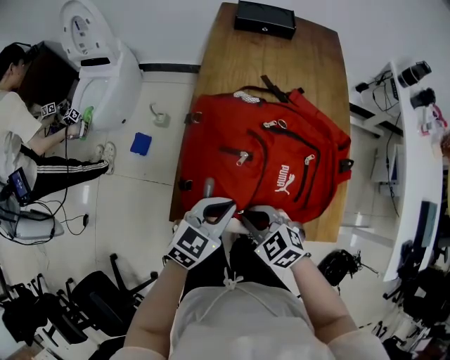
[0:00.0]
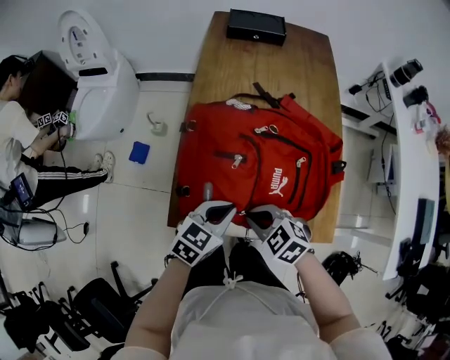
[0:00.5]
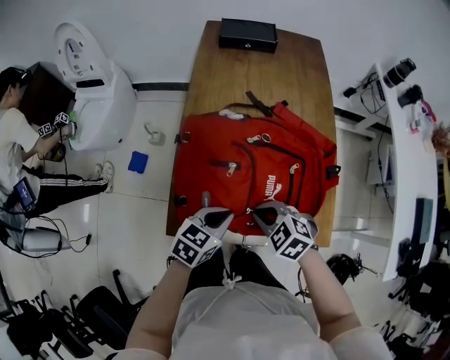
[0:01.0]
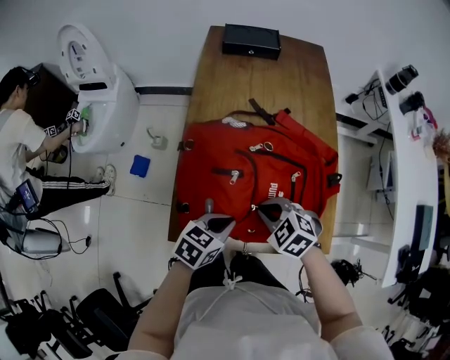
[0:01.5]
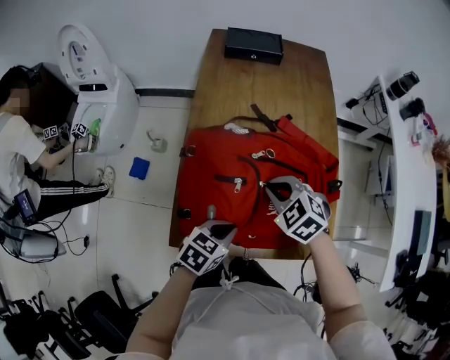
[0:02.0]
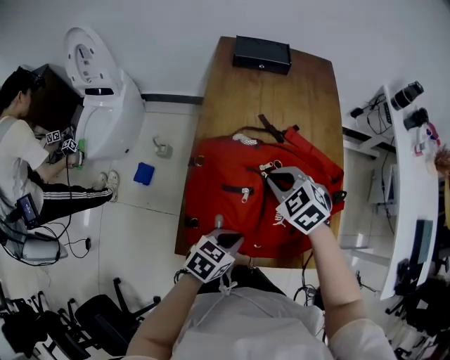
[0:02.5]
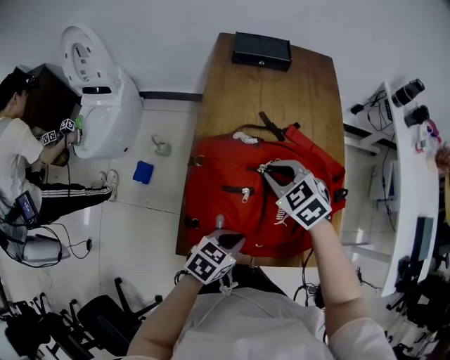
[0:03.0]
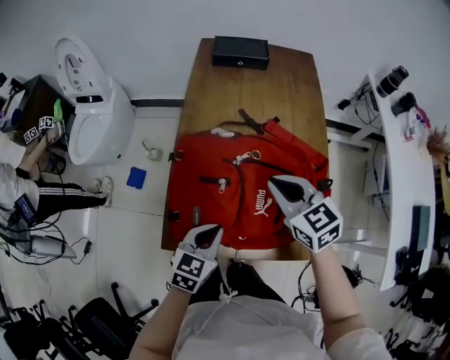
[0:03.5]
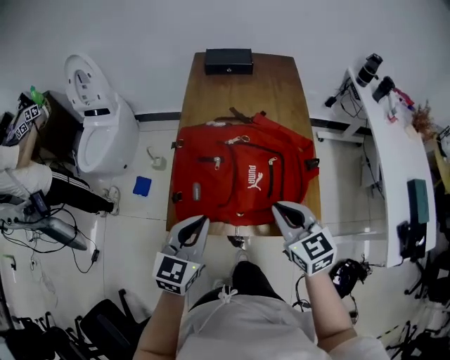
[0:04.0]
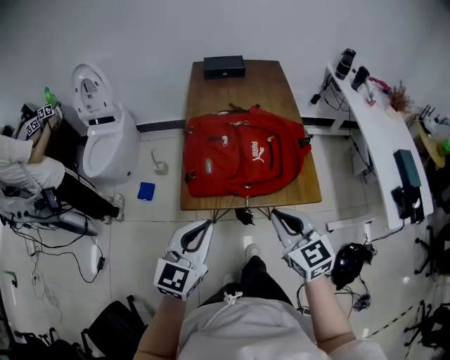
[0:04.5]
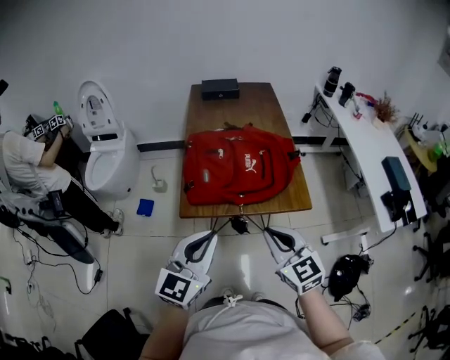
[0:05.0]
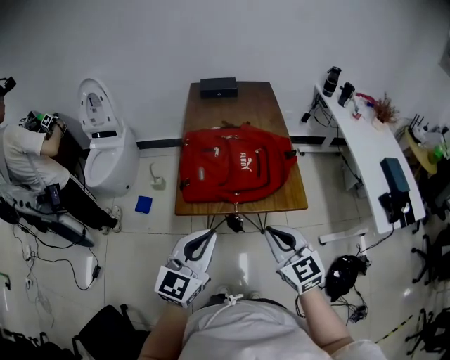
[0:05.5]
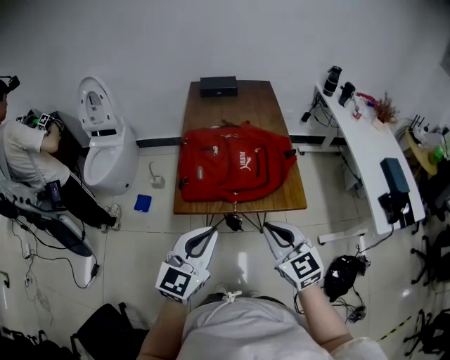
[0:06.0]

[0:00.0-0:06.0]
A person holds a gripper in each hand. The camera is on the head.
0:00.0 to 0:02.0: The left gripper changes its angle by roughly 20 degrees. The right gripper travels forward and to the right by approximately 15 cm.
0:02.0 to 0:04.0: The right gripper is displaced backward, upward and to the right by some 20 cm, and rotates some 40 degrees; the left gripper moves upward, some 15 cm, and changes its angle by approximately 40 degrees.
0:04.0 to 0:06.0: The right gripper shifts approximately 20 cm backward; the left gripper goes approximately 20 cm backward and upward.

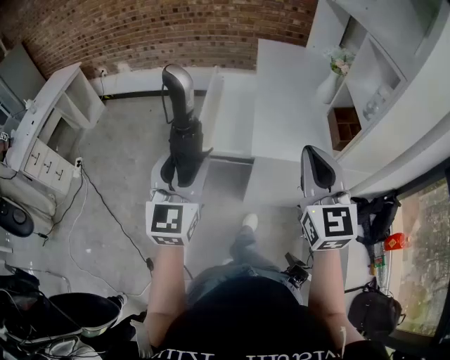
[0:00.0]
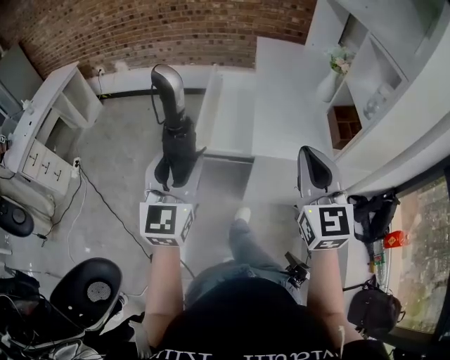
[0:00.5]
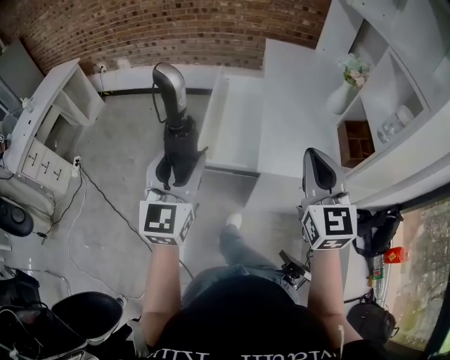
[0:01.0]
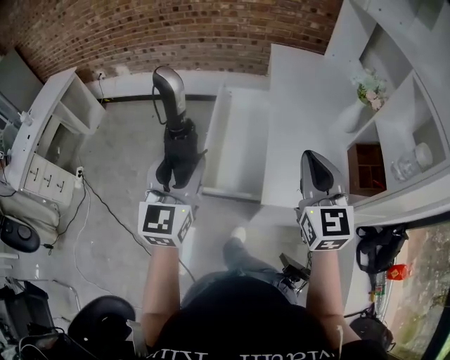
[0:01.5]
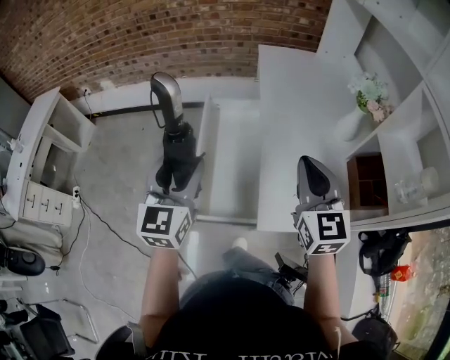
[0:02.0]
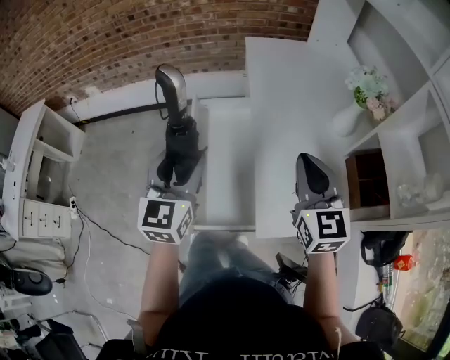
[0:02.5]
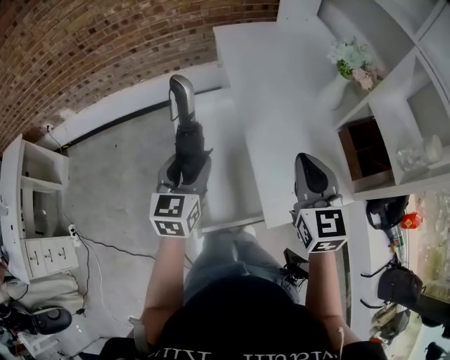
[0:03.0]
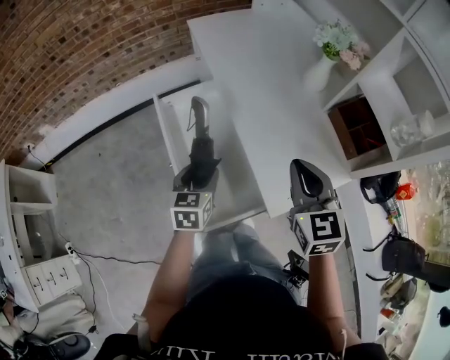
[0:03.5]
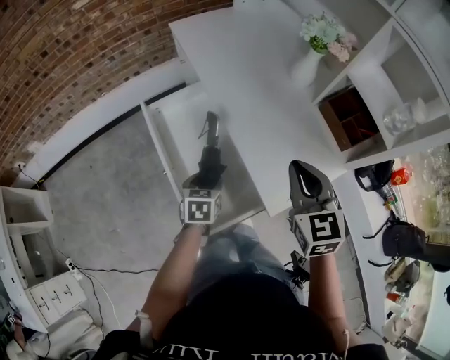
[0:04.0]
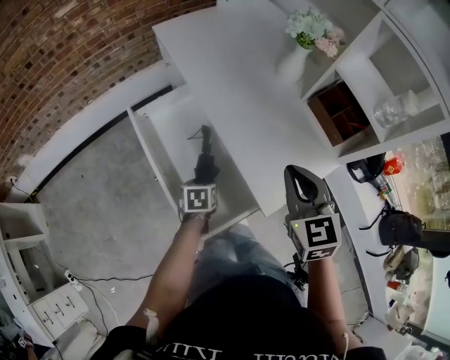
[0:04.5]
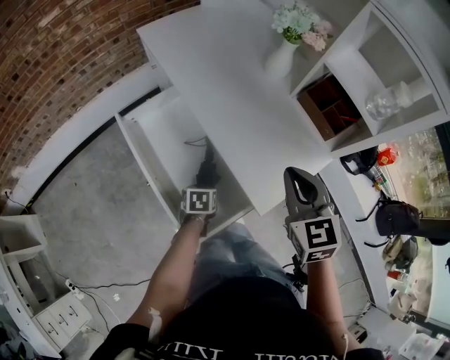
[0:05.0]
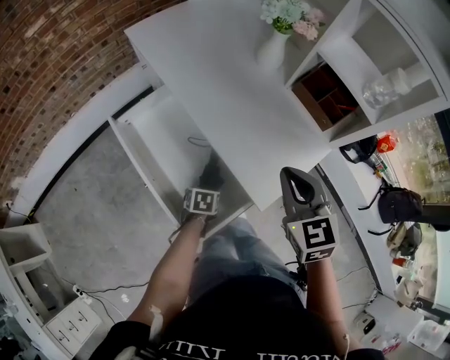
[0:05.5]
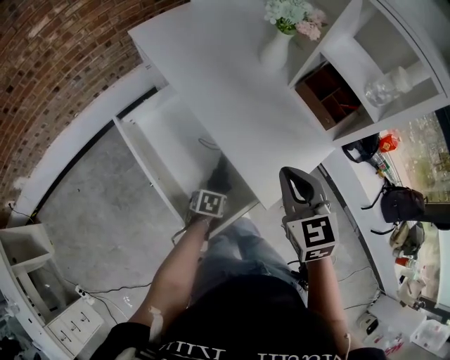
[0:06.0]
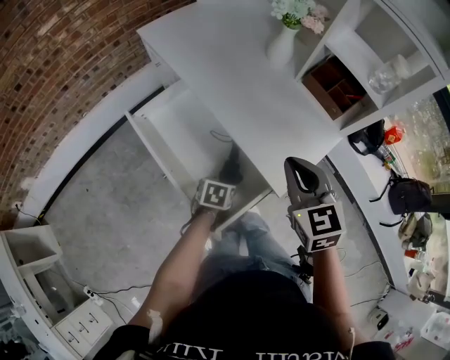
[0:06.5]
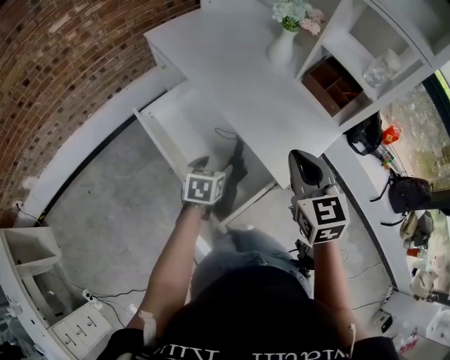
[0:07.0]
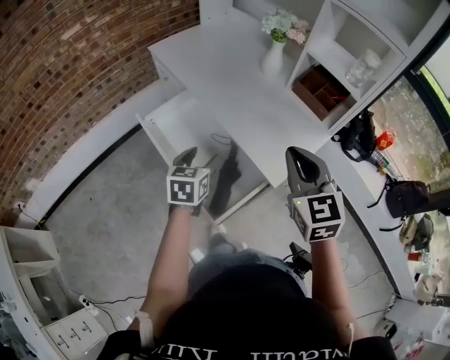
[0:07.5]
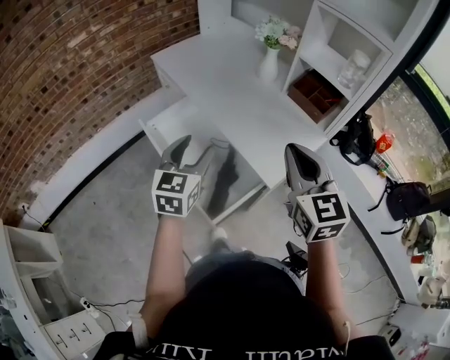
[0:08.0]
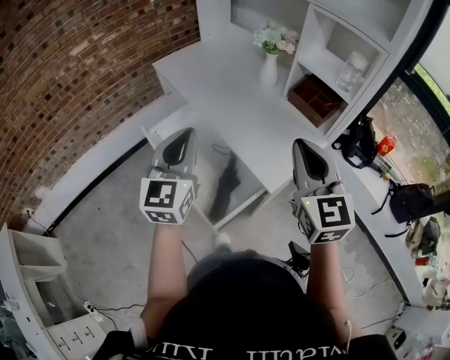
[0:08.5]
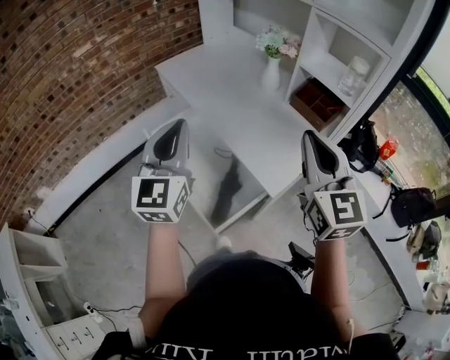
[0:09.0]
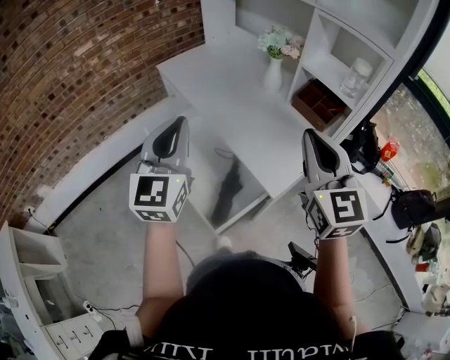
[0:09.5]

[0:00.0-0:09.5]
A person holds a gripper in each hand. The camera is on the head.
0:00.0 to 0:02.0: The two grippers go approximately 30 cm forward.
0:02.0 to 0:04.0: The left gripper moves downward, approximately 30 cm, and points its fingers some 40 degrees further downward, while the right gripper heads downward, covering approximately 5 cm, and changes its angle by roughly 30 degrees.
0:04.0 to 0:05.5: The left gripper heads downward and to the right, covering roughly 15 cm, and turns by some 20 degrees.
0:05.5 to 0:07.5: The left gripper travels upward by some 25 cm, and points its fingers roughly 30 degrees further upward, while the right gripper shifts approximately 10 cm backward and upward.
0:07.5 to 0:09.5: The right gripper goes approximately 10 cm upward; the left gripper goes roughly 25 cm upward, tips its fingers upward by about 30 degrees, and closes its fingers.

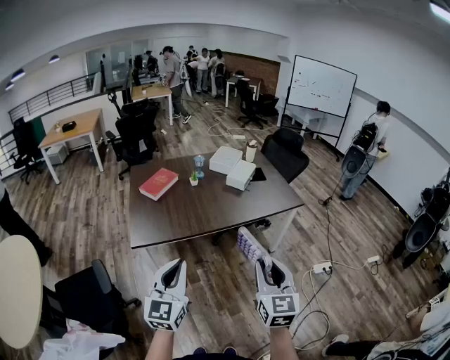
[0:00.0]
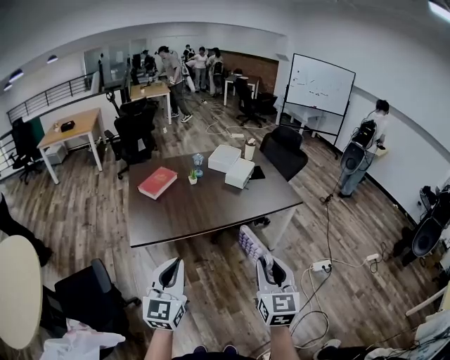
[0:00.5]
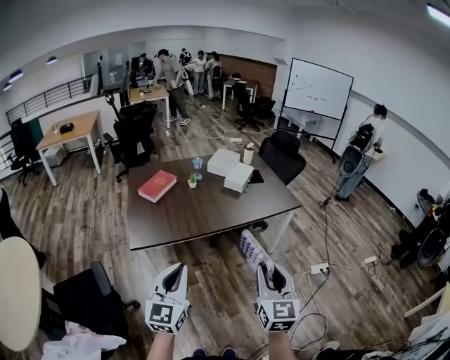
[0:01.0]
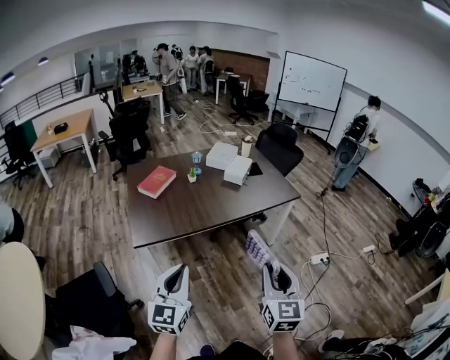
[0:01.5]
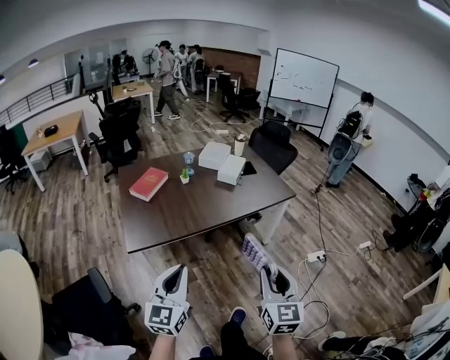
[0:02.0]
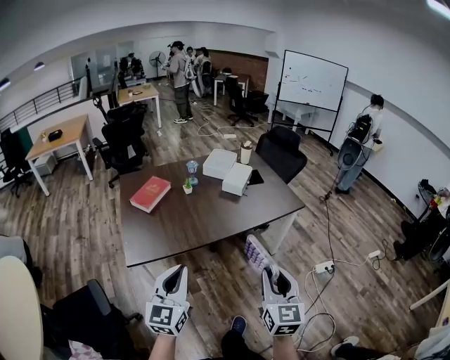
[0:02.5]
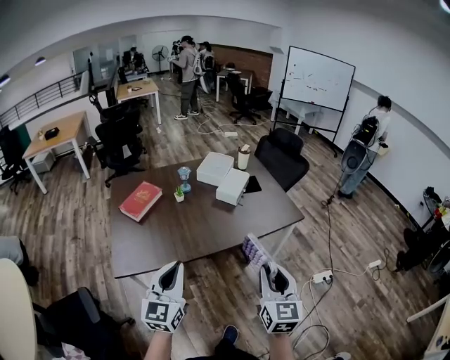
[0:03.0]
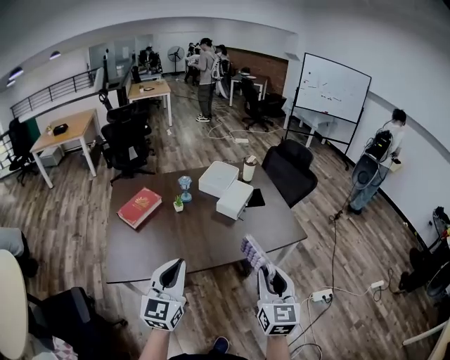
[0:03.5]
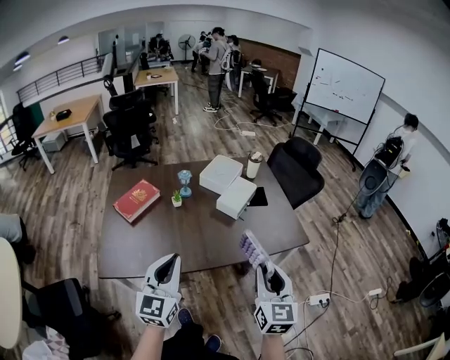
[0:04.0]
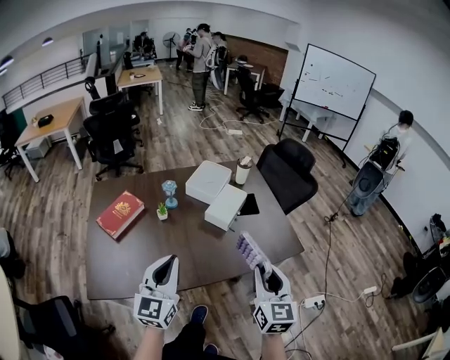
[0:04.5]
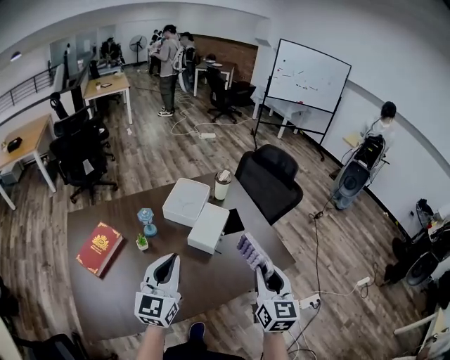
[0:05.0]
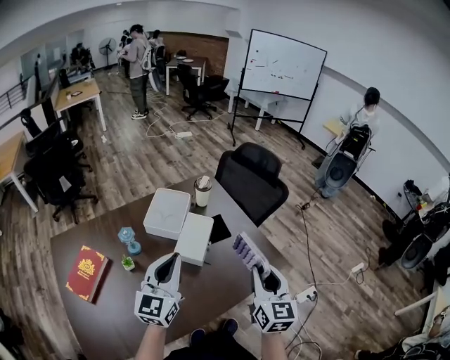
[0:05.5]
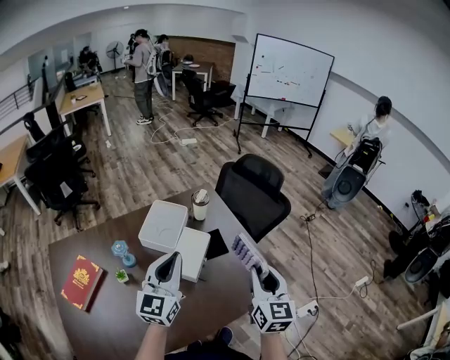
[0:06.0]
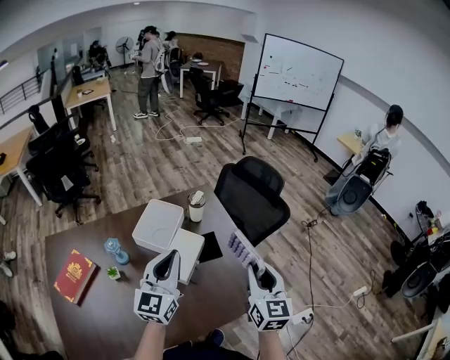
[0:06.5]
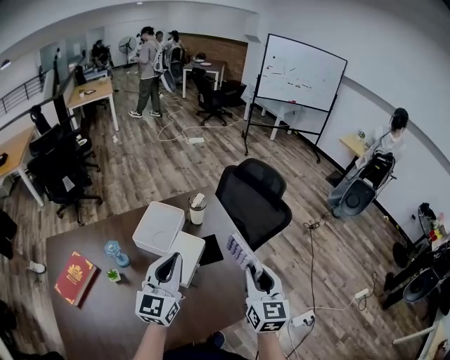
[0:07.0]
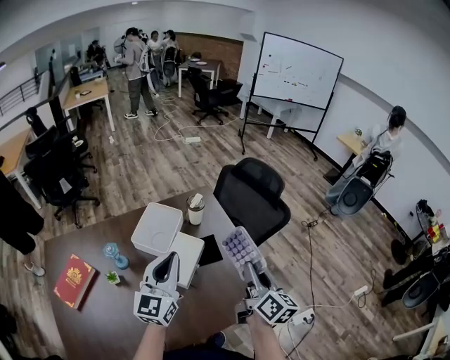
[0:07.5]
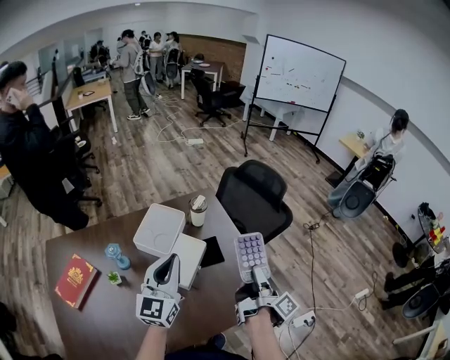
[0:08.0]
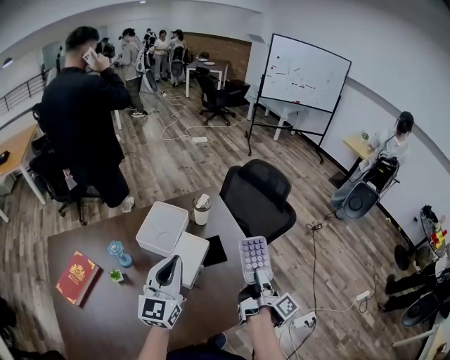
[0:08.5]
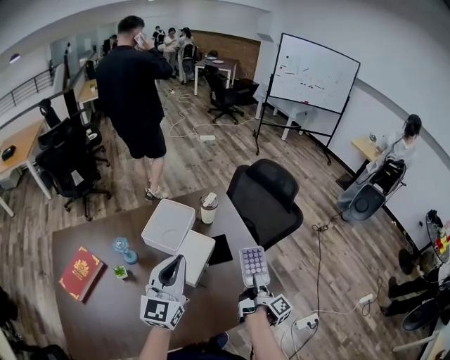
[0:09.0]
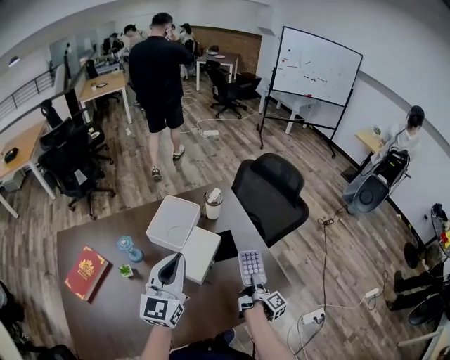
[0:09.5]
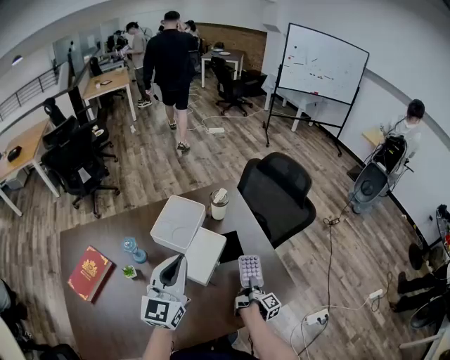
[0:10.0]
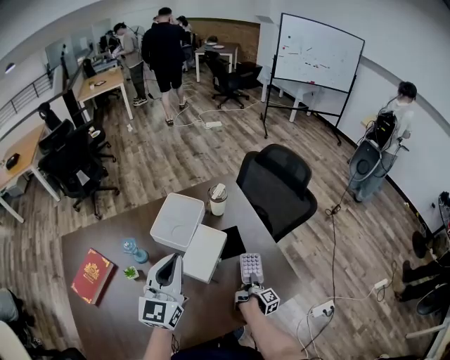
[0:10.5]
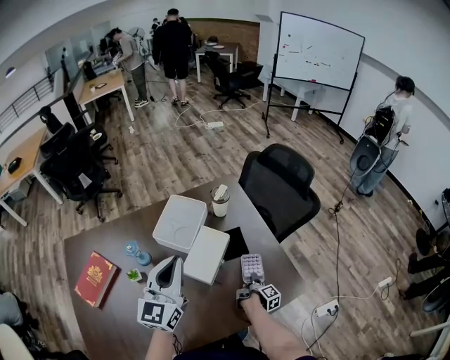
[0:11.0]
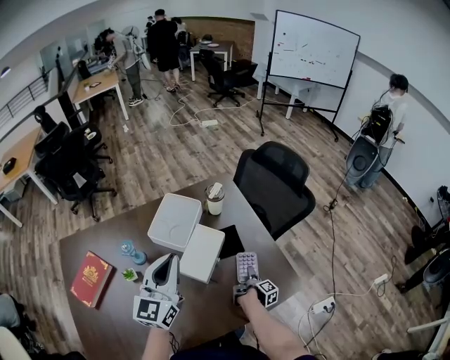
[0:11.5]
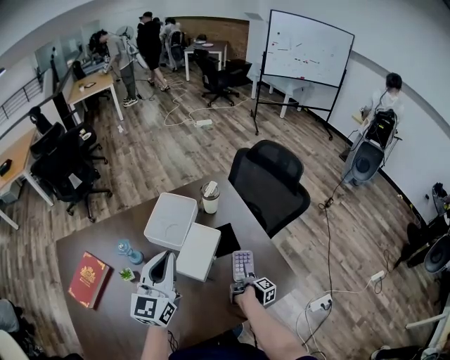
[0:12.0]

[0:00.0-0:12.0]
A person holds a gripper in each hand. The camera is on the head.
0:00.0 to 0:02.0: There are only small adjustments of the grippers.
0:02.0 to 0:04.0: The grippers both shift forward by about 40 cm.
0:04.0 to 0:06.0: The two grippers go approximately 40 cm forward.
0:06.0 to 0:08.0: The left gripper moves about 5 cm. The right gripper heads forward and downward, covering about 10 cm, and rotates around the line of its fingers by some 90 degrees, clockwise from behind.
0:08.0 to 0:10.0: The right gripper is displaced downward by approximately 30 cm, and rotates roughly 20 degrees.
0:10.0 to 0:12.0: The right gripper travels downward by roughly 5 cm, and opens up.
